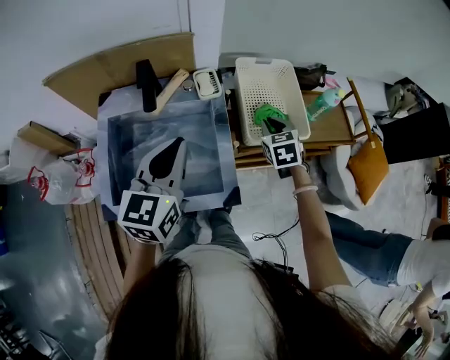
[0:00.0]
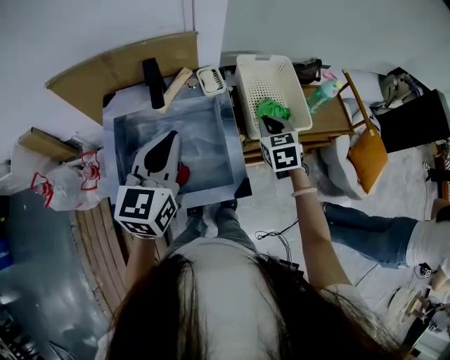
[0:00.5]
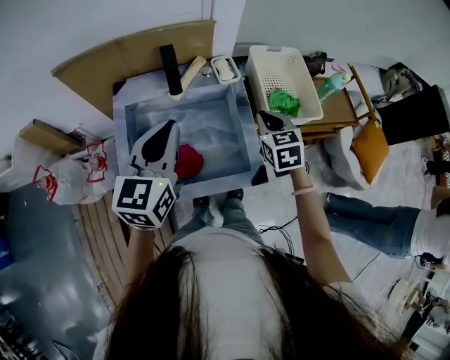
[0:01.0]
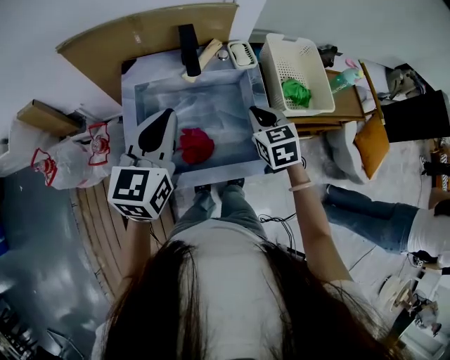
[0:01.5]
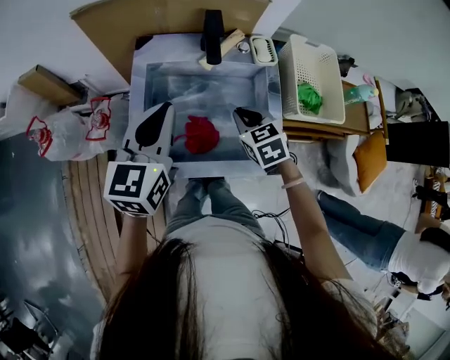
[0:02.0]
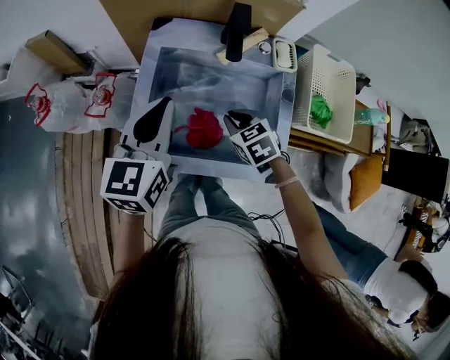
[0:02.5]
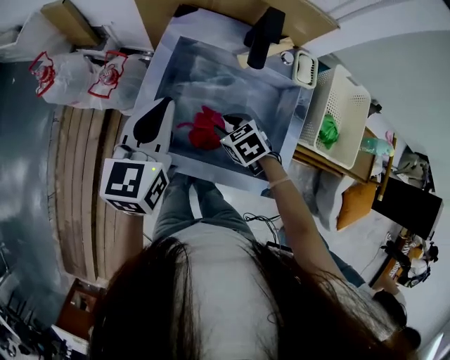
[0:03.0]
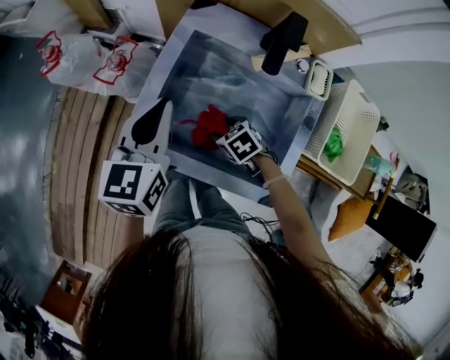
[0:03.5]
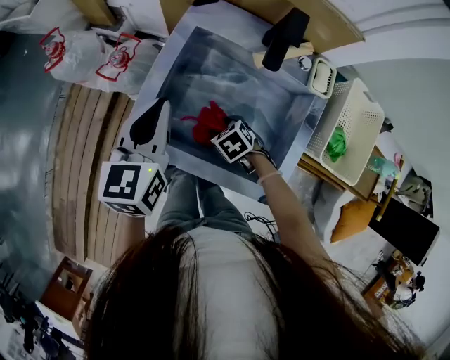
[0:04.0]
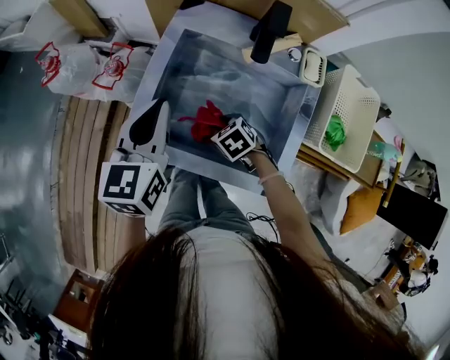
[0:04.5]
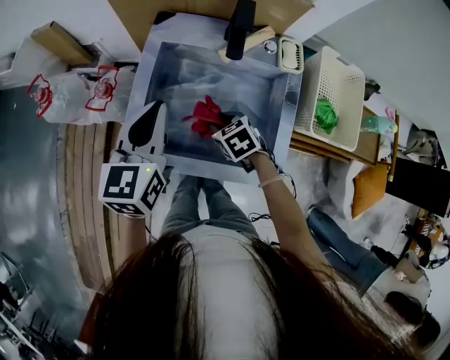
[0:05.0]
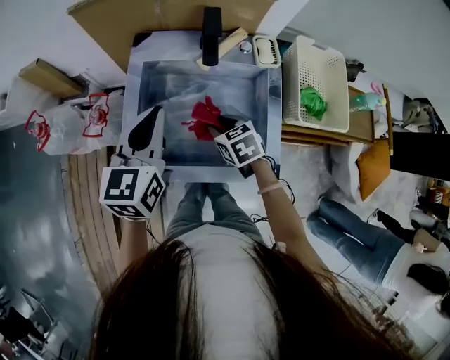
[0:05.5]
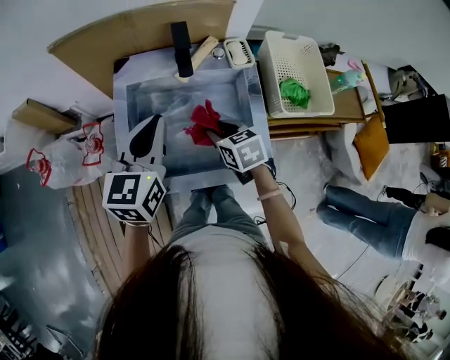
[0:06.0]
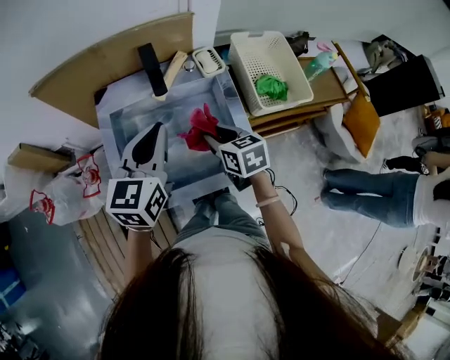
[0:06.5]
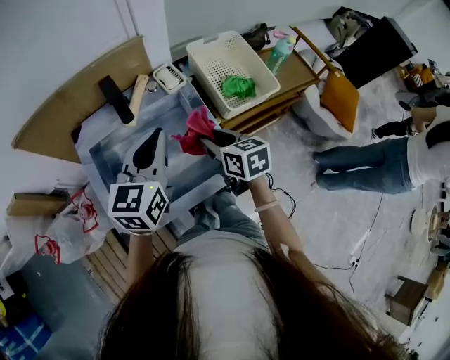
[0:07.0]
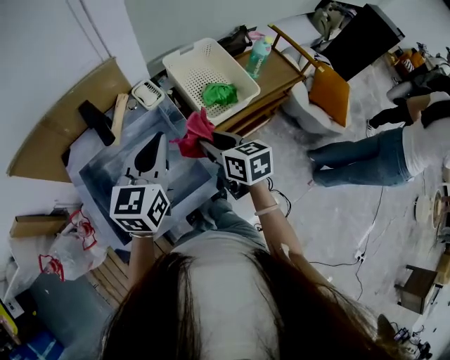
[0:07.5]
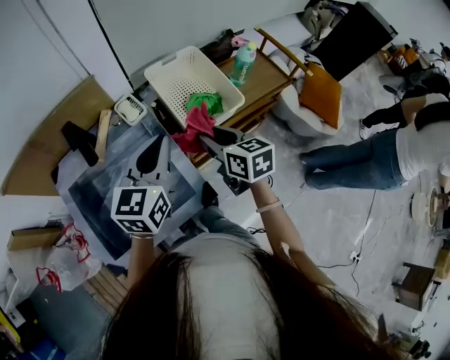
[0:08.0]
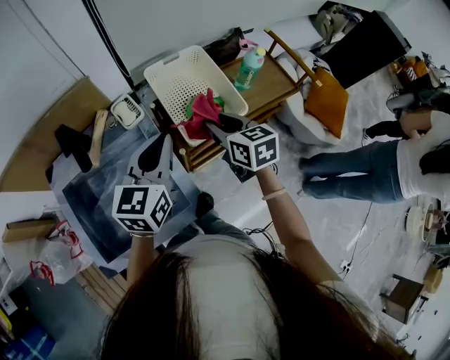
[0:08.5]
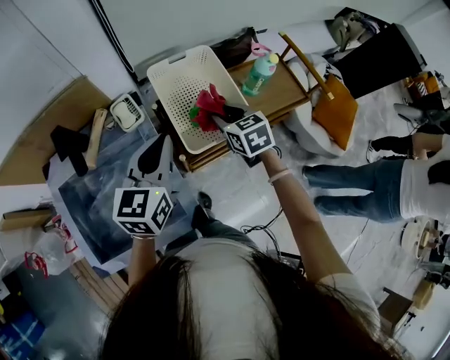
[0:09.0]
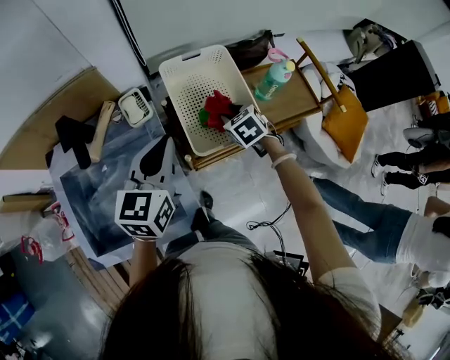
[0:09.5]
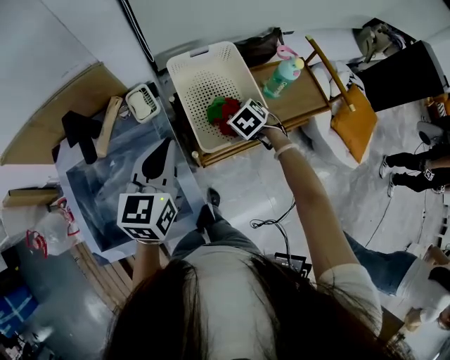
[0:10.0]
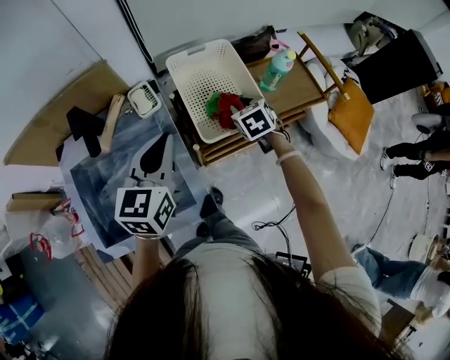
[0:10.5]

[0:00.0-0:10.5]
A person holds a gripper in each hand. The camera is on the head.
0:00.0 to 0:02.0: The two grippers go about 25 cm to the left. The right gripper turns by approximately 20 degrees.
0:02.0 to 0:04.0: The right gripper travels downward by about 20 cm, turns by some 40 degrees, and opens its fingers; the left gripper is displaced downward by approximately 10 cm, and changes its angle by about 30 degrees.
0:04.0 to 0:06.5: The left gripper ends up about 20 cm from where it was, and turns by some 40 degrees. Meanwhile the right gripper goes roughly 20 cm upward, tips its fingers upward by some 30 degrees, and closes its fingers.
0:06.5 to 0:08.5: The left gripper shifts some 25 cm to the right. The right gripper goes approximately 30 cm to the right and forward.
0:08.5 to 0:10.5: The right gripper moves downward and forward, roughly 15 cm, and swivels about 30 degrees.

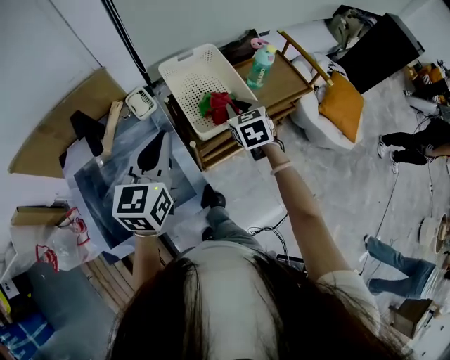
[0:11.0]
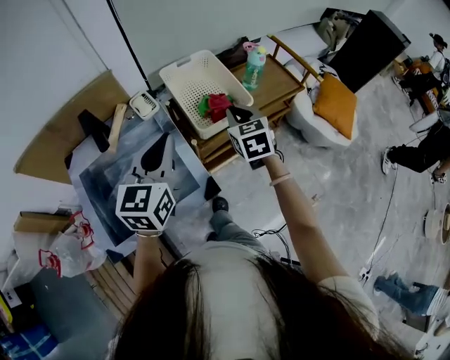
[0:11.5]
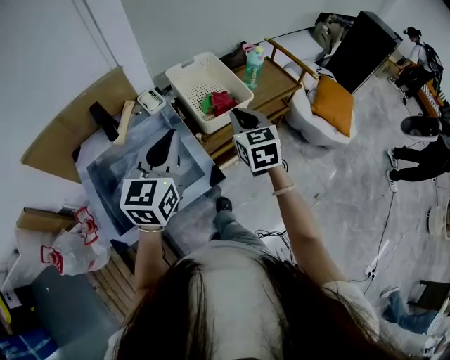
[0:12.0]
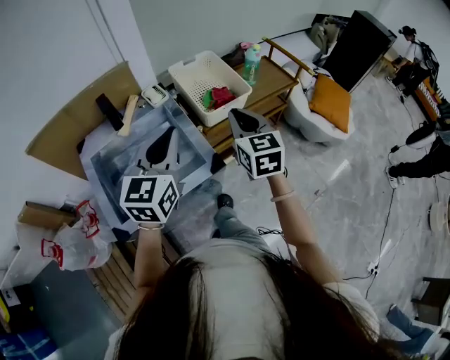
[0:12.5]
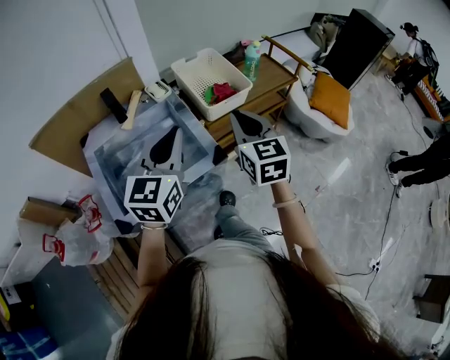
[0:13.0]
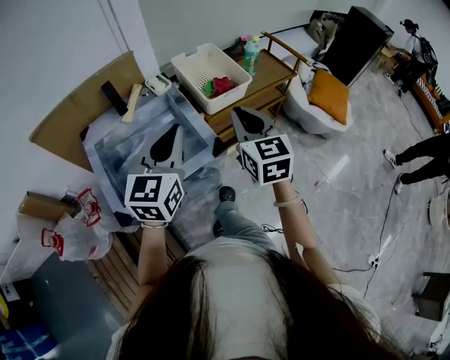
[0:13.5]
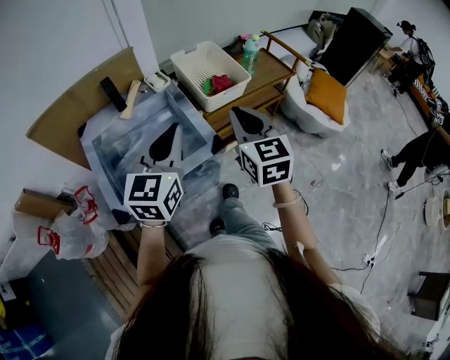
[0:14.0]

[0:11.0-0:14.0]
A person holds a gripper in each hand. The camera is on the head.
0:11.0 to 0:12.5: The left gripper travels backward by some 15 cm, while the right gripper heads backward and upward, covering roughly 25 cm, and swivels some 20 degrees.
0:12.5 to 0:14.0: Both grippers move backward, roughly 10 cm.

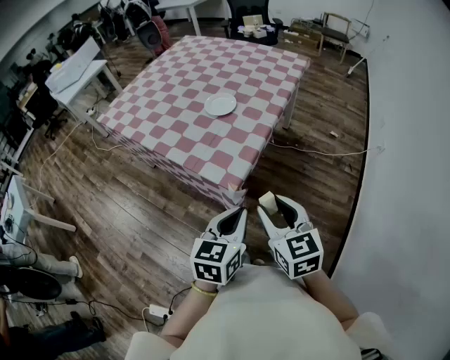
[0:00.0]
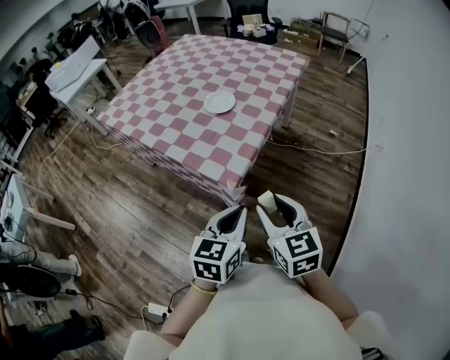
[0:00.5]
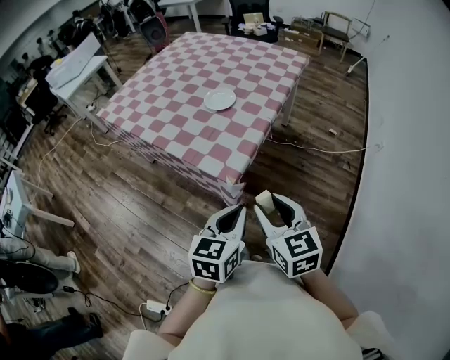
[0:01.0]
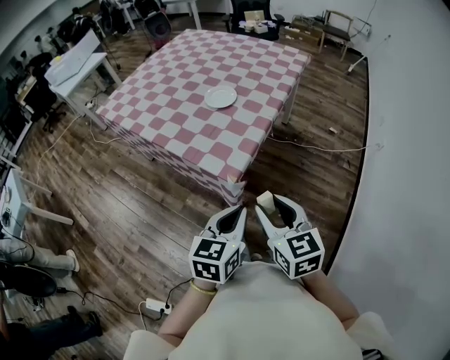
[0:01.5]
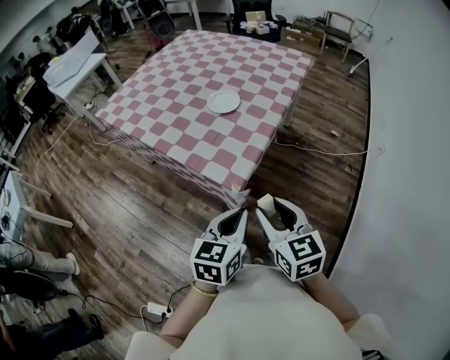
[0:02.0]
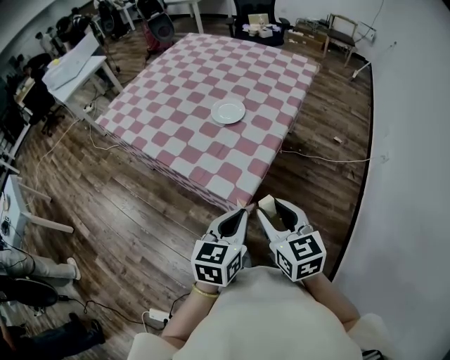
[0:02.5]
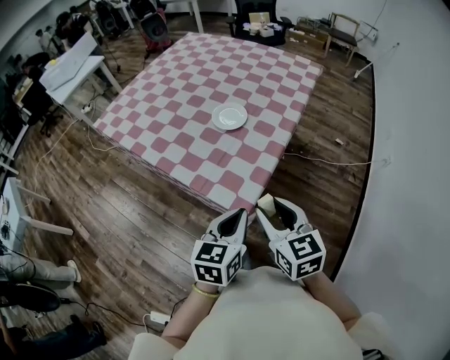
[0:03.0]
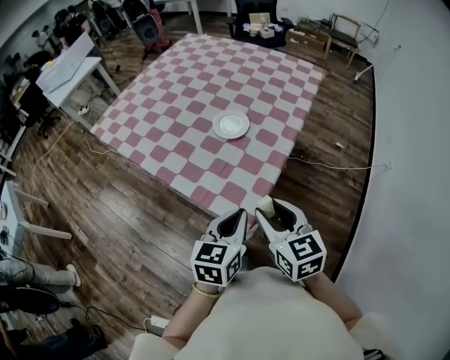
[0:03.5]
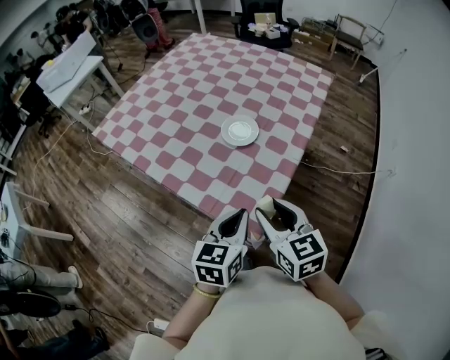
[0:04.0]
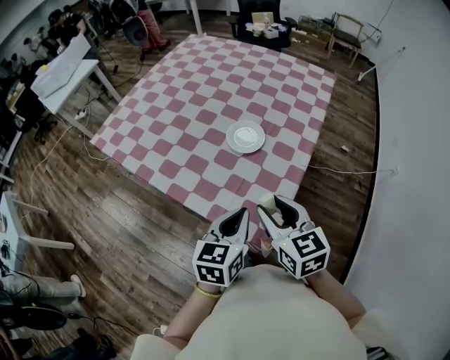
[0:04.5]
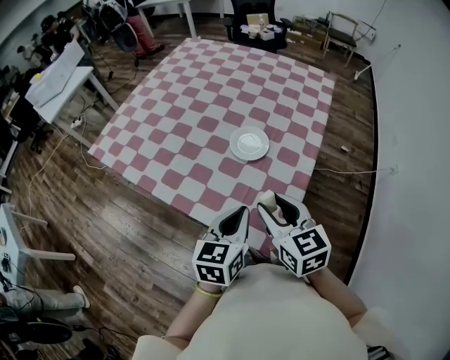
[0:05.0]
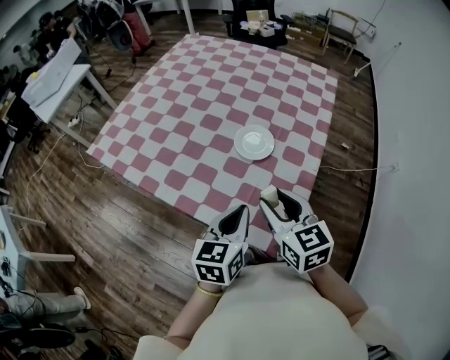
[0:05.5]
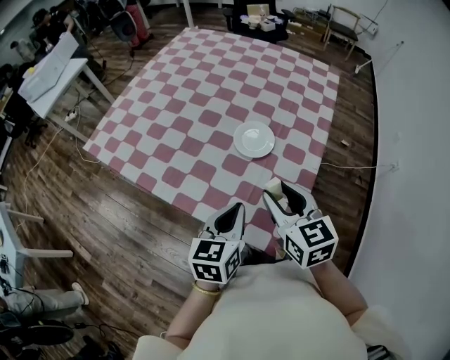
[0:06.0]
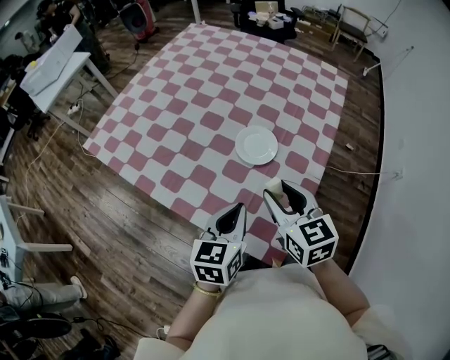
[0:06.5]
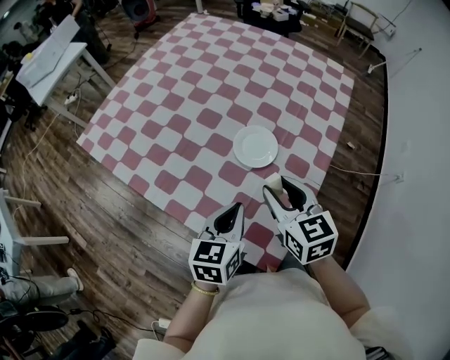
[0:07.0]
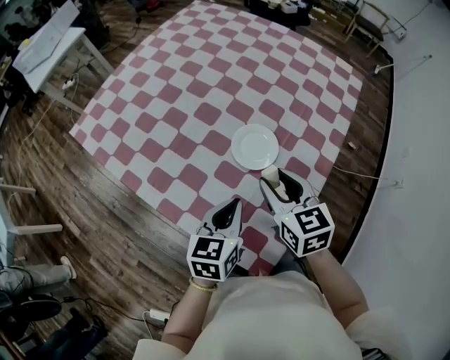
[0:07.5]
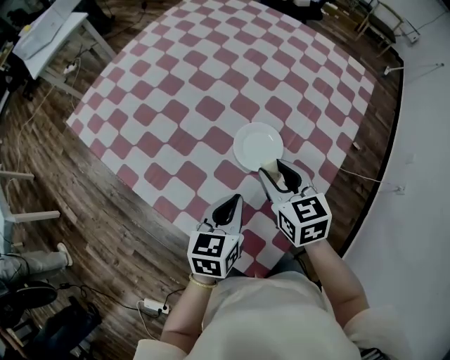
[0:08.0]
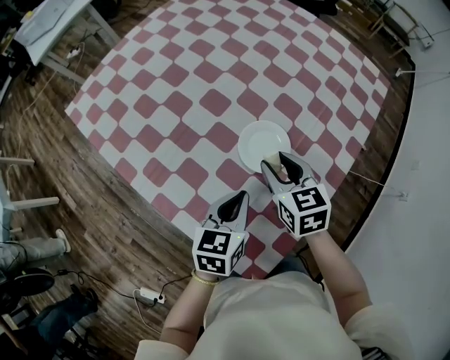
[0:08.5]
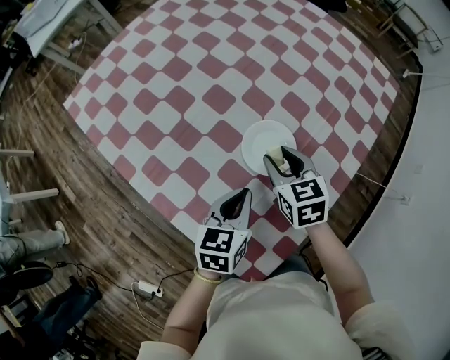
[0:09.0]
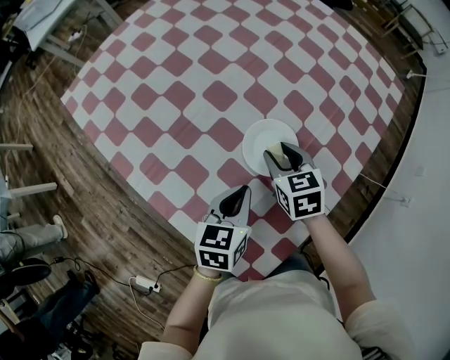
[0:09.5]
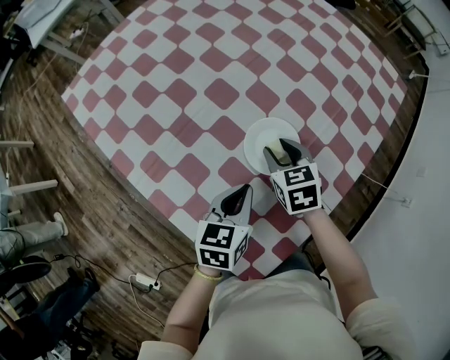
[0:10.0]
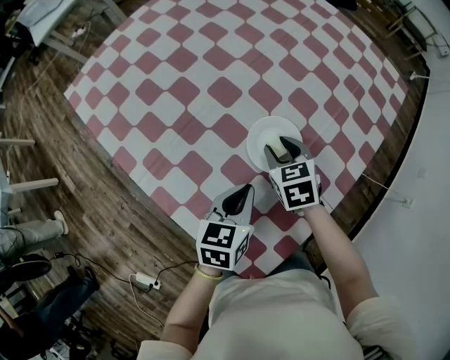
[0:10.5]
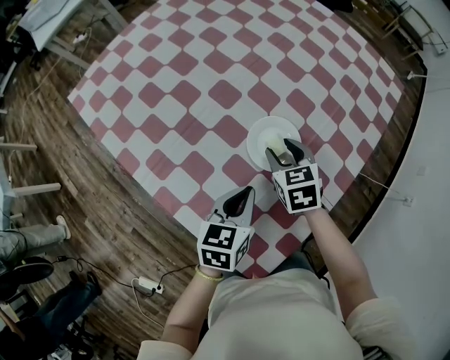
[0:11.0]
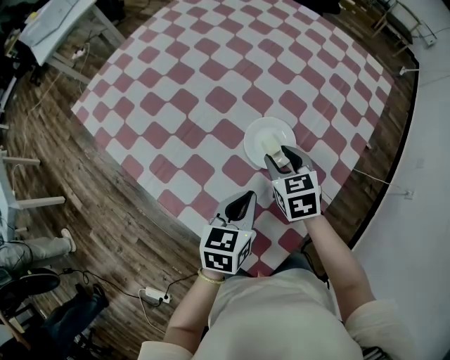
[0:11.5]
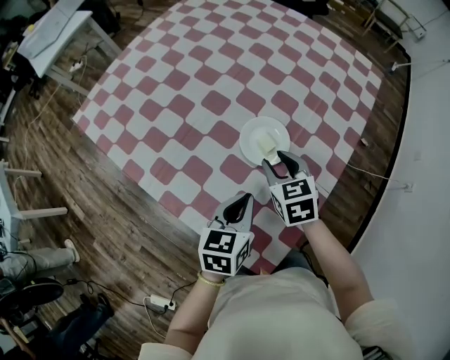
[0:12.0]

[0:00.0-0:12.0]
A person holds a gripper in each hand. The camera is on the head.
0:00.0 to 0:02.0: The grippers make only small movements.
0:02.0 to 0:04.0: Both grippers move forward, some 20 cm.
0:04.0 to 0:06.0: Both grippers travel together forward and to the left, some 15 cm.
0:06.0 to 0:08.0: Both grippers travel together forward and downward, about 15 cm.
0:08.0 to 0:10.0: The left gripper moves downward, approximately 5 cm; the right gripper shifts about 15 cm downward and forward.
0:10.0 to 0:12.0: The right gripper travels backward and upward by some 10 cm. The left gripper goes approximately 5 cm backward.

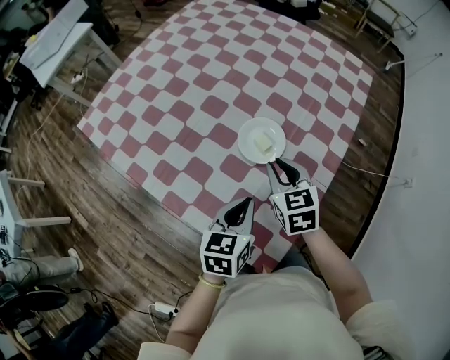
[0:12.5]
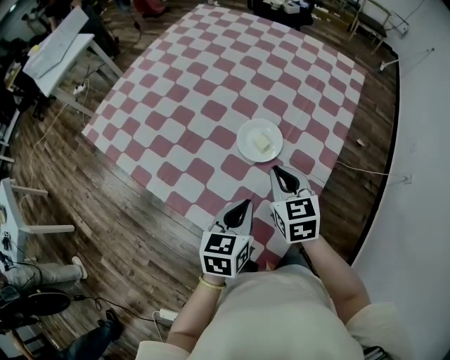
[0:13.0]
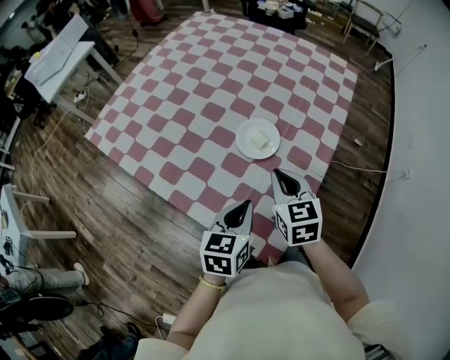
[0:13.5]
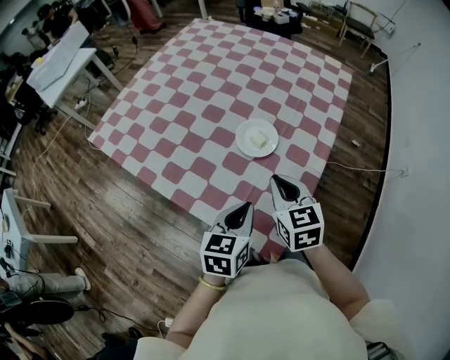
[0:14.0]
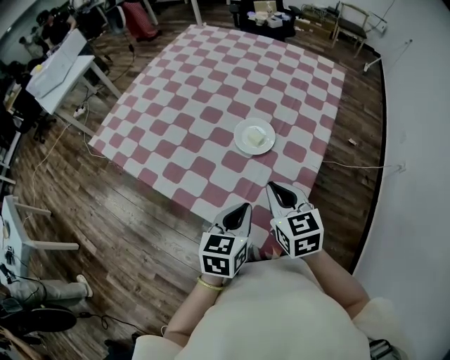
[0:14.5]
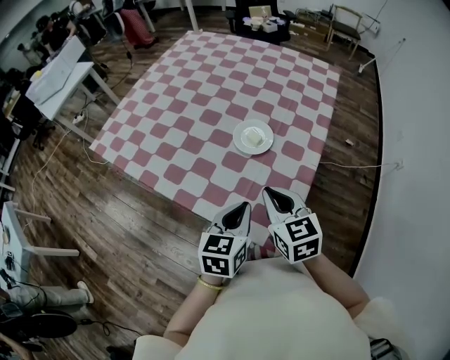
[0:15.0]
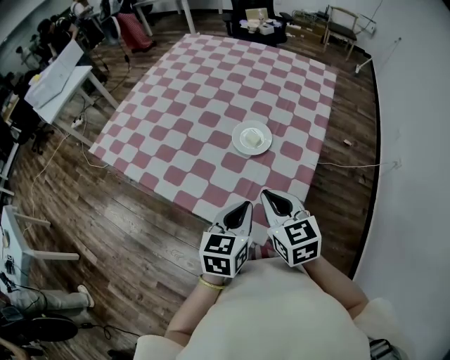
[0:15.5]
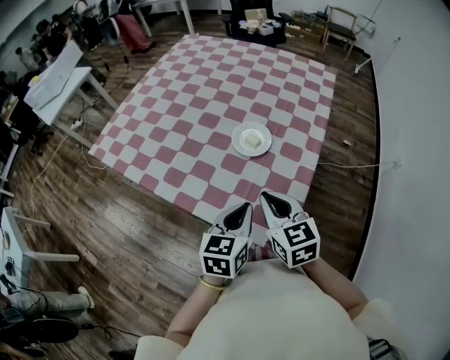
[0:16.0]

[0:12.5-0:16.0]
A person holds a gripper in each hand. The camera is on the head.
0:12.5 to 0:14.5: The left gripper goes roughly 10 cm backward. Meanwhile the right gripper heads backward and upward, covering some 15 cm.
0:14.5 to 0:16.0: The grippers make only small movements.
